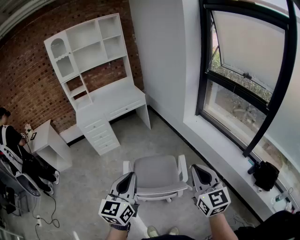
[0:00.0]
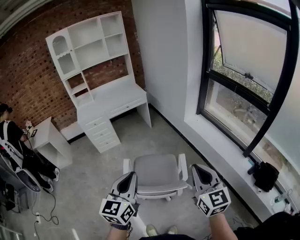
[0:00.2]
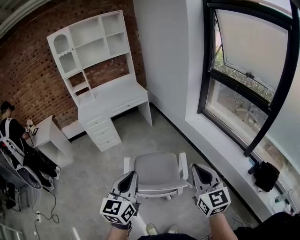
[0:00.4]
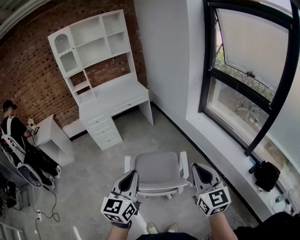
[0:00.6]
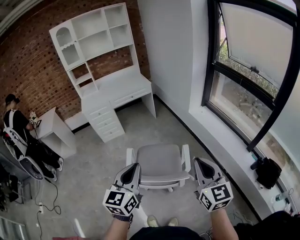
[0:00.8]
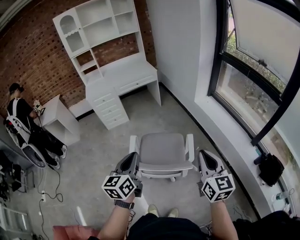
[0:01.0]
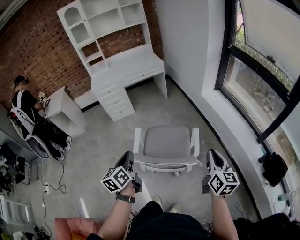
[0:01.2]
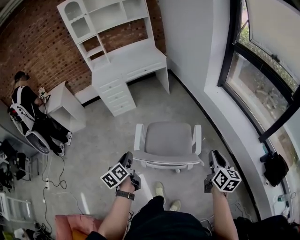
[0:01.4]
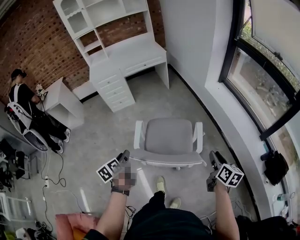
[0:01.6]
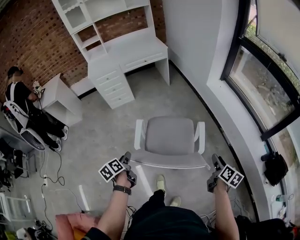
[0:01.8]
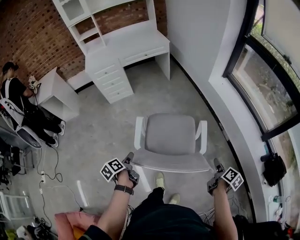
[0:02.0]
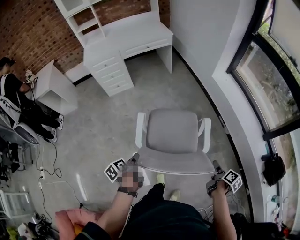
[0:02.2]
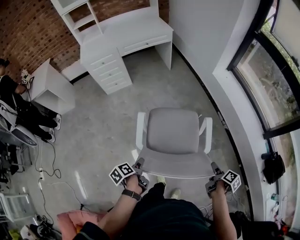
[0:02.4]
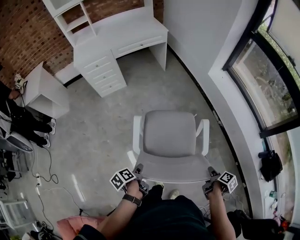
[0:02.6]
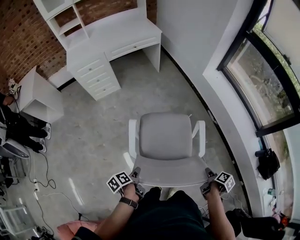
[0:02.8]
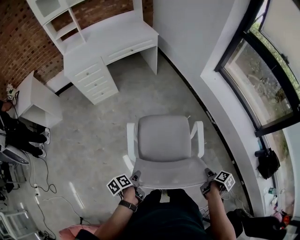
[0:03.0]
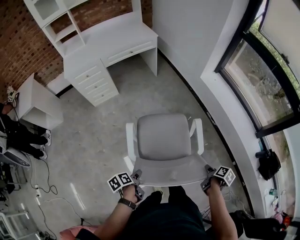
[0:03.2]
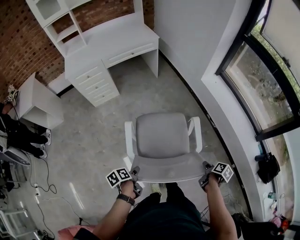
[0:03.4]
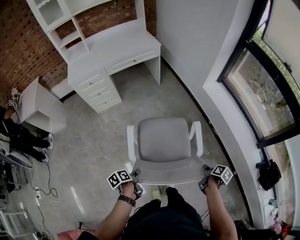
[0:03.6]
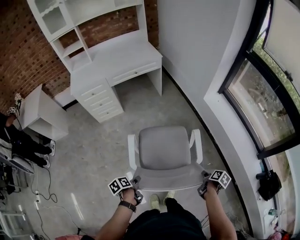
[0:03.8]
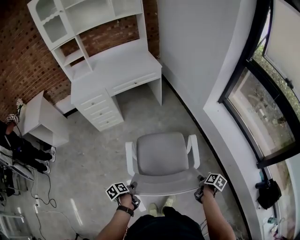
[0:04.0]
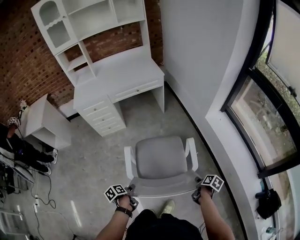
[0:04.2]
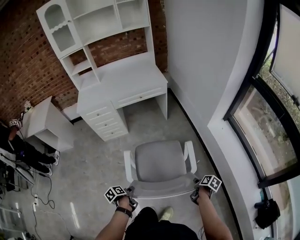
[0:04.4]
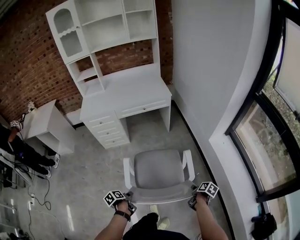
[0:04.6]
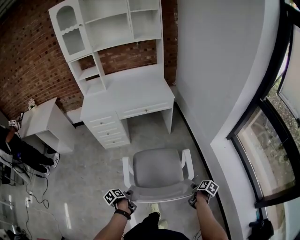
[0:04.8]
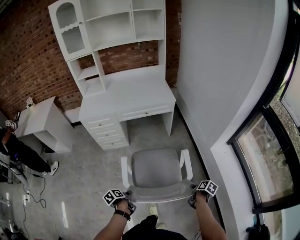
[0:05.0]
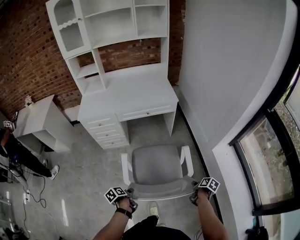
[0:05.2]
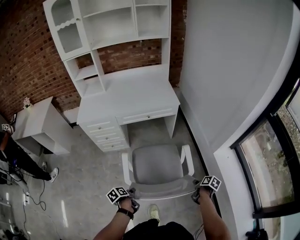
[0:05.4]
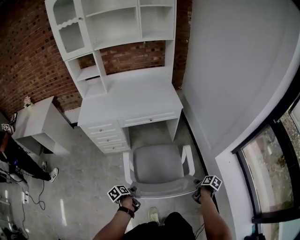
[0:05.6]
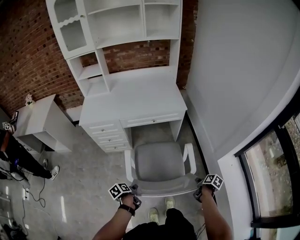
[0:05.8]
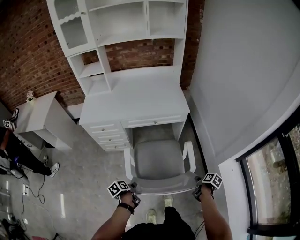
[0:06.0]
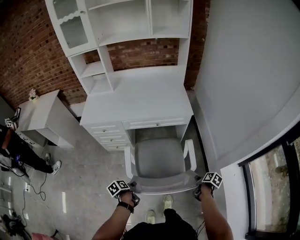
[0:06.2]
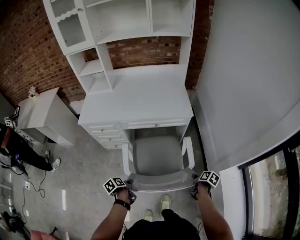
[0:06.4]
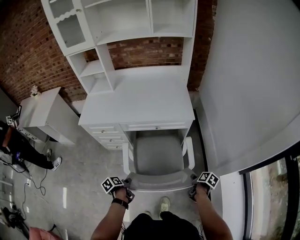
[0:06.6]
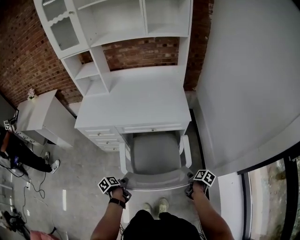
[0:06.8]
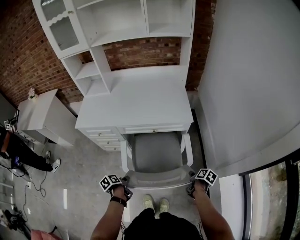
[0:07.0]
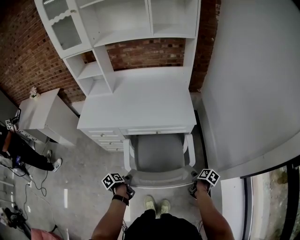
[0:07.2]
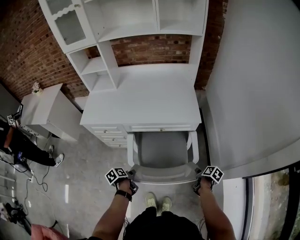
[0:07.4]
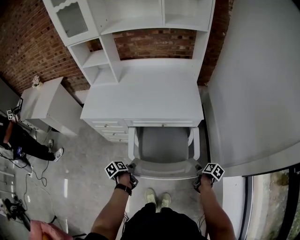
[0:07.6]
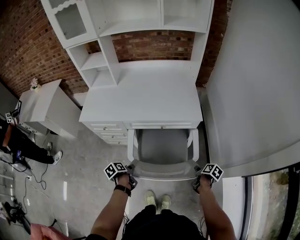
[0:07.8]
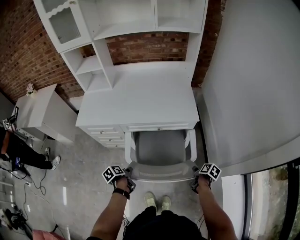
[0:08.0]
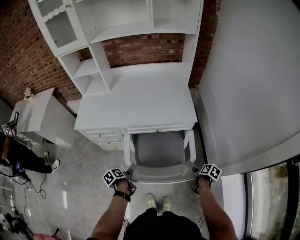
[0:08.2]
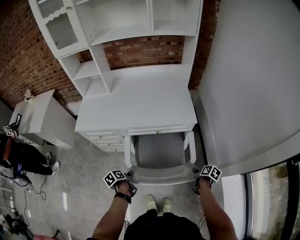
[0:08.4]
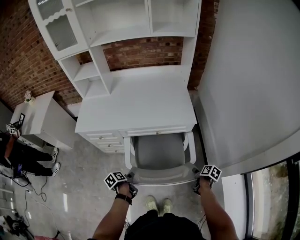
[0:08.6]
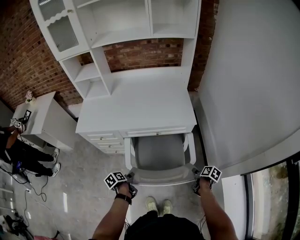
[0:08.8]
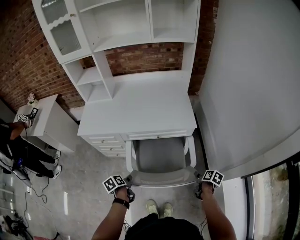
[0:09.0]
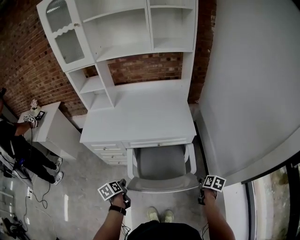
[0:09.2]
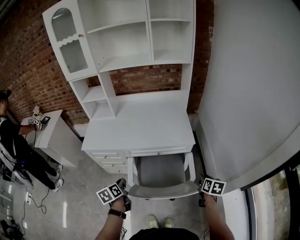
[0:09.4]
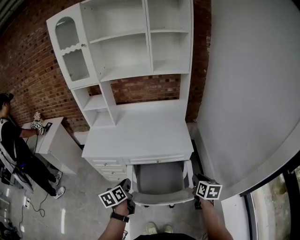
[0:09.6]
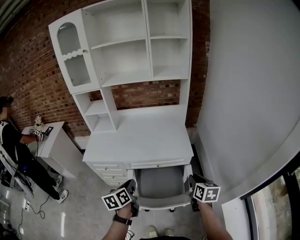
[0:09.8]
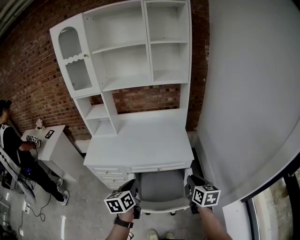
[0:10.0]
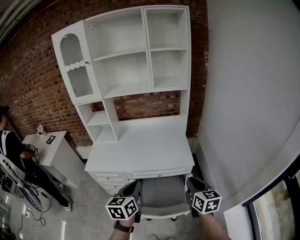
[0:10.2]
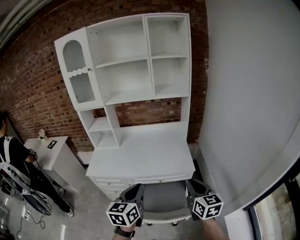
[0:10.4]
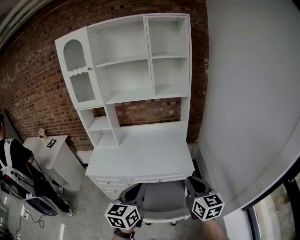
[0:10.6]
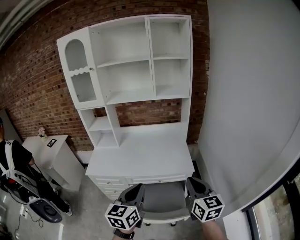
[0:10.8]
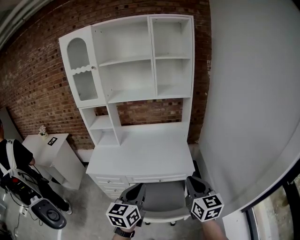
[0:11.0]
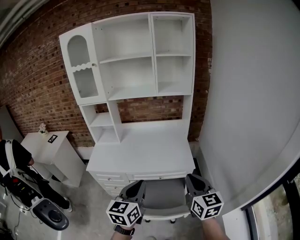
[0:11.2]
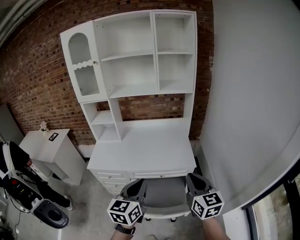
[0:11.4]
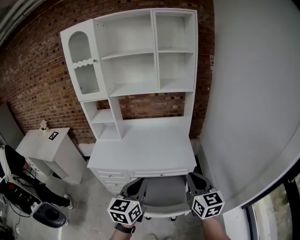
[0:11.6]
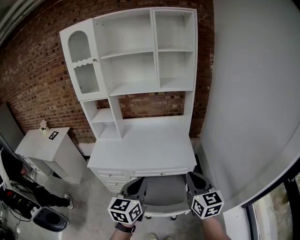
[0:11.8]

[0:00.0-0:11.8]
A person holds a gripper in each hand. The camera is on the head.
0:00.0 to 0:01.4: The right gripper is displaced downward by approximately 20 cm, and swivels approximately 30 degrees. Meanwhile the left gripper travels downward and to the left by some 25 cm, and swivels approximately 50 degrees.
0:01.4 to 0:03.0: The grippers both shift downward by some 25 cm. The left gripper rotates some 40 degrees, and opens up, while the right gripper tips its fingers downward by about 40 degrees, and opens and closes again.
0:03.0 to 0:04.4: The right gripper is displaced forward by some 30 cm, and turns by roughly 20 degrees; the left gripper is displaced forward by about 20 cm.
0:04.4 to 0:06.0: The two grippers go approximately 35 cm forward.
0:06.0 to 0:07.4: The grippers both shift forward by roughly 20 cm.
0:07.4 to 0:08.8: The grippers stay close to where they were, moving slightly.
0:08.8 to 0:10.4: Both grippers move upward, about 40 cm. The right gripper tilts its fingers approximately 40 degrees upward, and closes its fingers; the left gripper tips its fingers upward by about 40 degrees, and closes.
0:10.4 to 0:11.8: The right gripper changes place by some 5 cm.

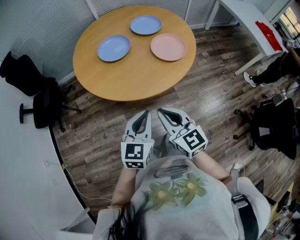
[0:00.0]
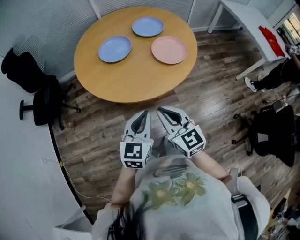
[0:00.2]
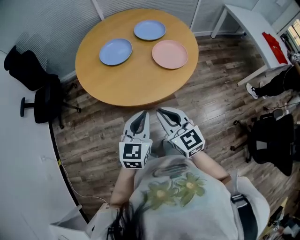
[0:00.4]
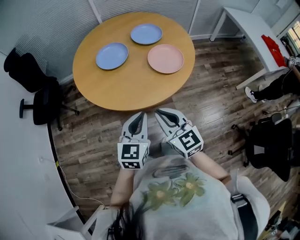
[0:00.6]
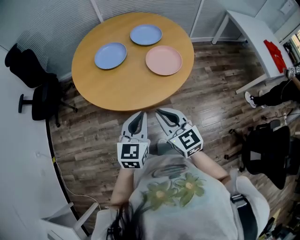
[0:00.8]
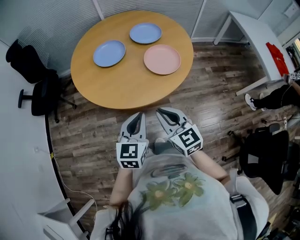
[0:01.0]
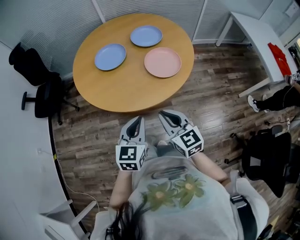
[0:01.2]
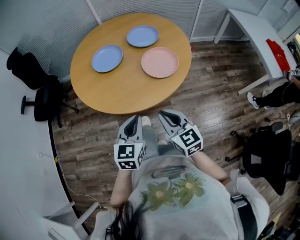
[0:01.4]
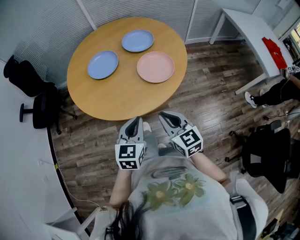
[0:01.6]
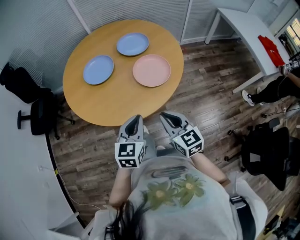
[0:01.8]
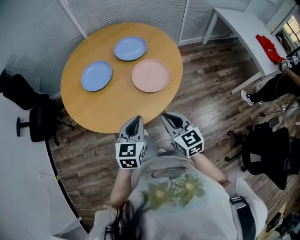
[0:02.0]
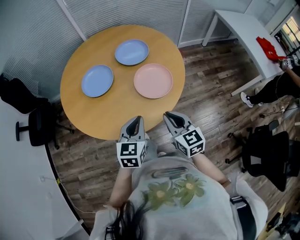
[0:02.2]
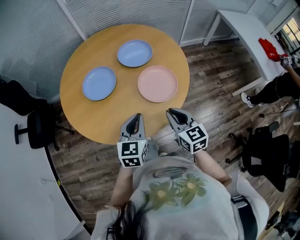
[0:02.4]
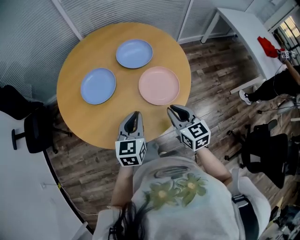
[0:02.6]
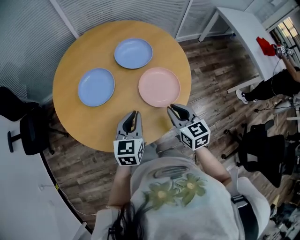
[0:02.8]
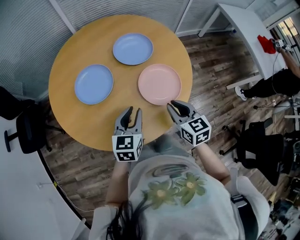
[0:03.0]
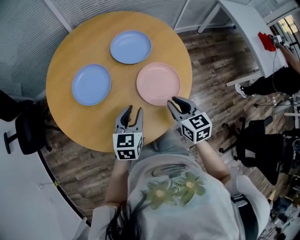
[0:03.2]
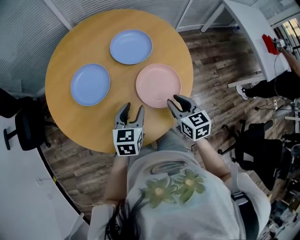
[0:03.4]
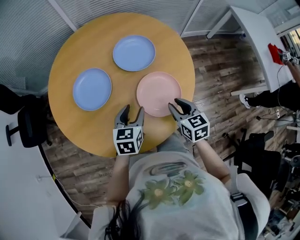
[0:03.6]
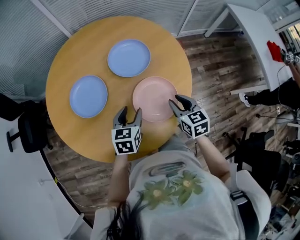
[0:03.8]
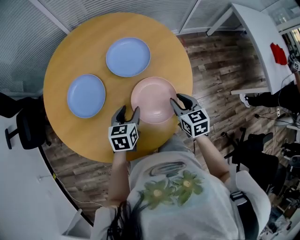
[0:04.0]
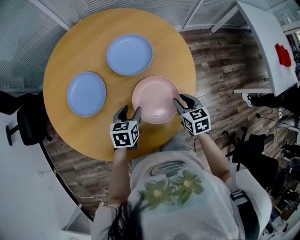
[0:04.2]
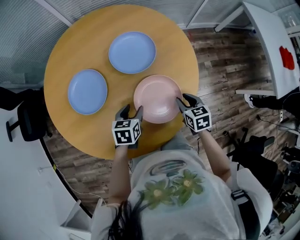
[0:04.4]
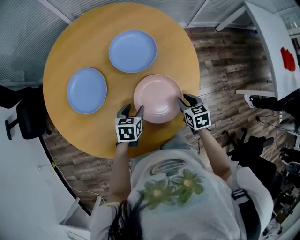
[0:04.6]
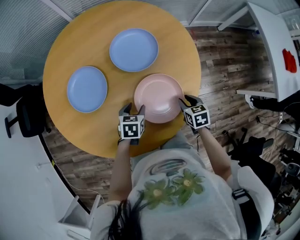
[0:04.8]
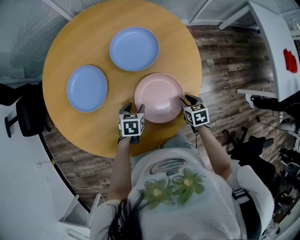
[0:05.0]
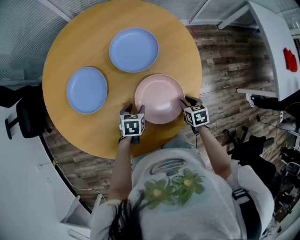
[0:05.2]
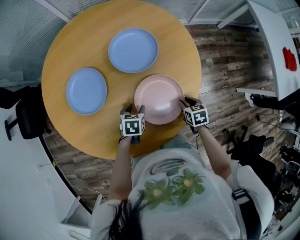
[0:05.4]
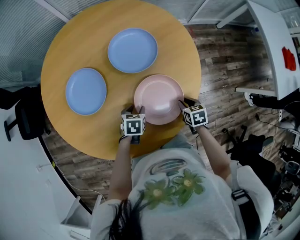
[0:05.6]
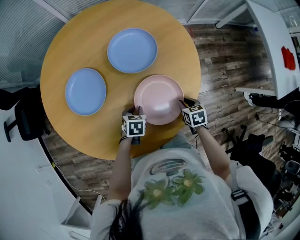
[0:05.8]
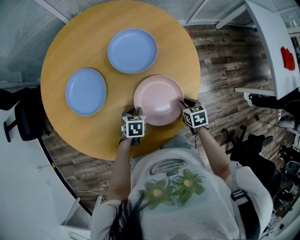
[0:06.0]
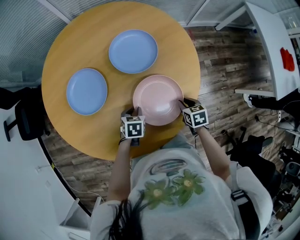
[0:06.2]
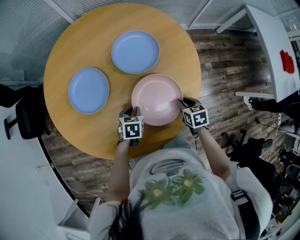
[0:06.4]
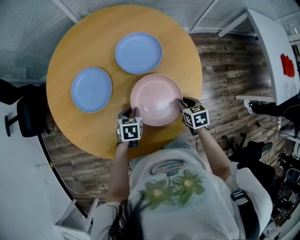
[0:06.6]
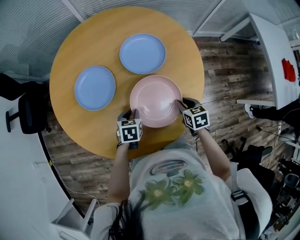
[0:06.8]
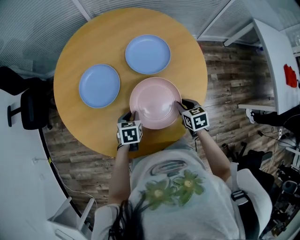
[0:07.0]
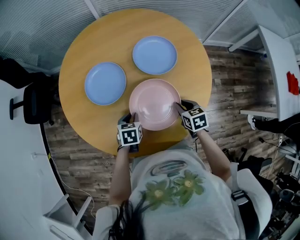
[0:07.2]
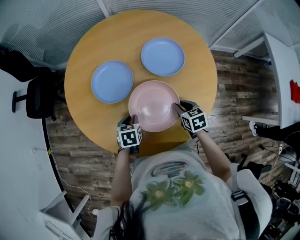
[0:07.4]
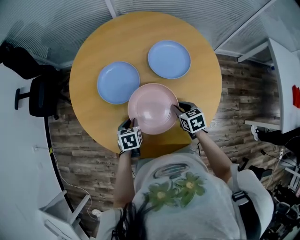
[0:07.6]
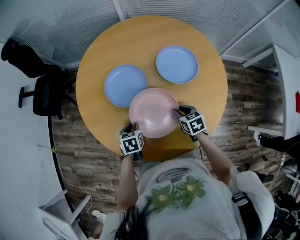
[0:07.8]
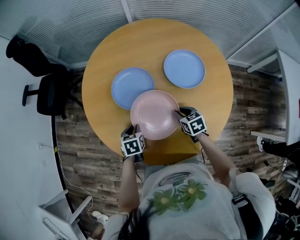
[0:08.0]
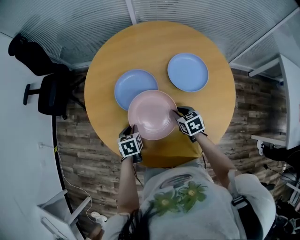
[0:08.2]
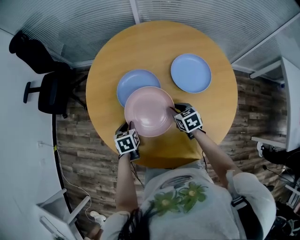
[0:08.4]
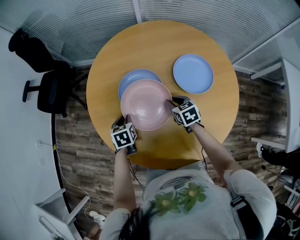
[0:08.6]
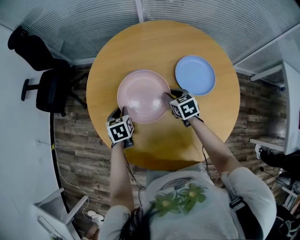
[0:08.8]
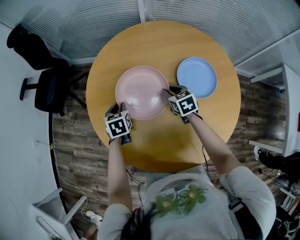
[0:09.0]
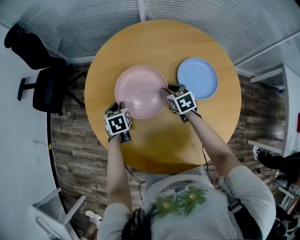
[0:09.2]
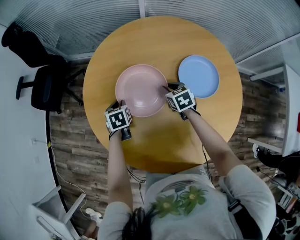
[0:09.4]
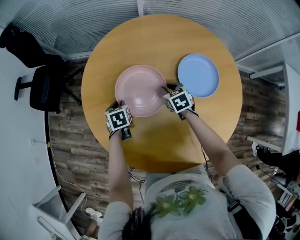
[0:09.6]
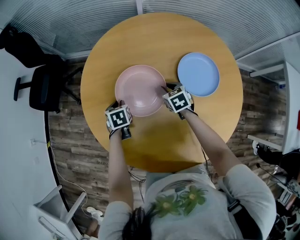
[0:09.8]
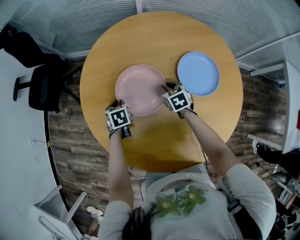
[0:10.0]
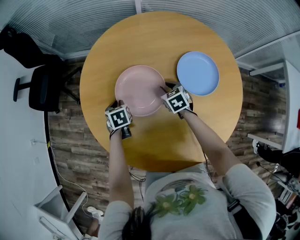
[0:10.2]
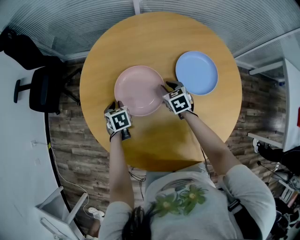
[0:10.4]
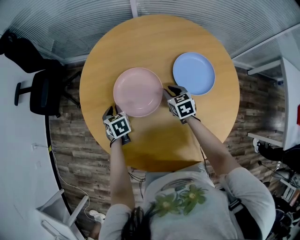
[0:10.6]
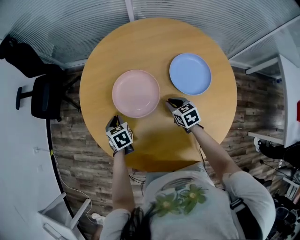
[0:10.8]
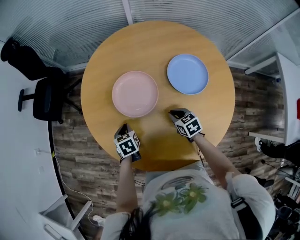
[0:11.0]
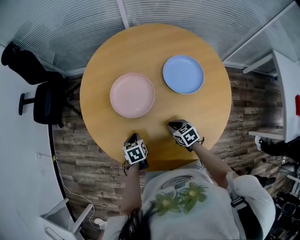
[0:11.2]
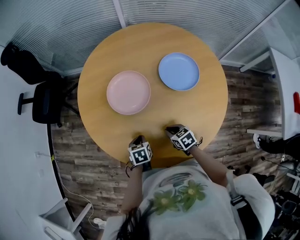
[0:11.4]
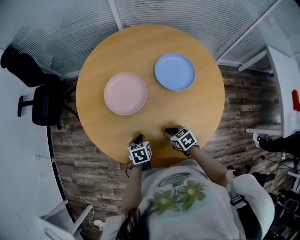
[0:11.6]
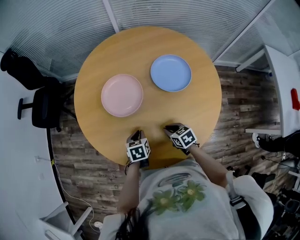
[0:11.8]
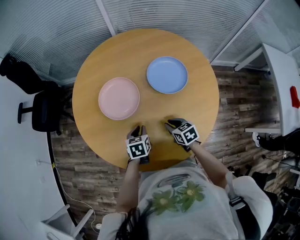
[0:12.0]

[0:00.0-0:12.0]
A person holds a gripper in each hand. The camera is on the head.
0:00.0 to 0:01.6: The right gripper moves to the right, some 20 cm. Meanwhile the left gripper shifts some 20 cm to the right and forward.
0:01.6 to 0:03.0: The grippers both shift forward by approximately 30 cm.
0:03.0 to 0:04.4: The right gripper moves forward, to the right and downward, some 25 cm; the left gripper is displaced forward, downward and to the right by approximately 20 cm, rotates roughly 30 degrees, and opens up.
0:04.4 to 0:06.0: Both grippers move downward, some 10 cm. The left gripper closes.
0:06.0 to 0:07.6: The grippers both shift to the left and upward by roughly 20 cm. The right gripper swivels about 20 degrees. Meanwhile the left gripper turns by about 30 degrees.
0:07.6 to 0:09.0: The two grippers go some 25 cm forward and to the left.
0:09.0 to 0:10.4: Both grippers move downward, approximately 5 cm.
0:10.4 to 0:12.0: The left gripper travels backward and to the right by some 30 cm, and turns by about 20 degrees. The right gripper is displaced backward by about 25 cm.
